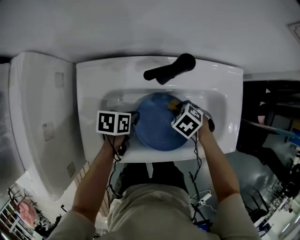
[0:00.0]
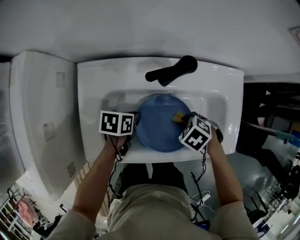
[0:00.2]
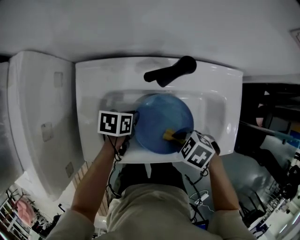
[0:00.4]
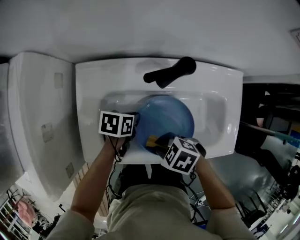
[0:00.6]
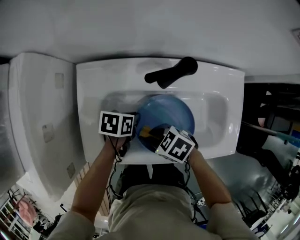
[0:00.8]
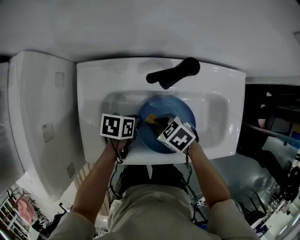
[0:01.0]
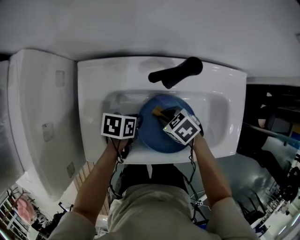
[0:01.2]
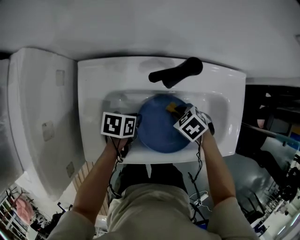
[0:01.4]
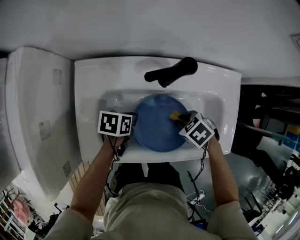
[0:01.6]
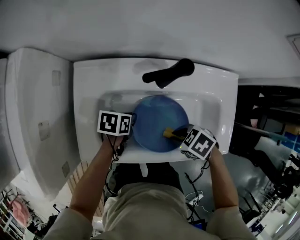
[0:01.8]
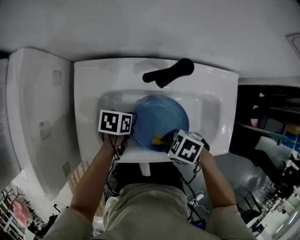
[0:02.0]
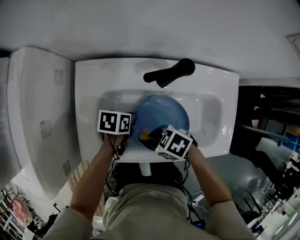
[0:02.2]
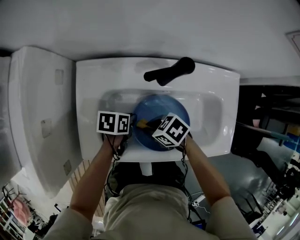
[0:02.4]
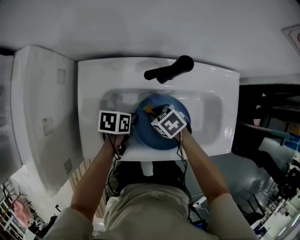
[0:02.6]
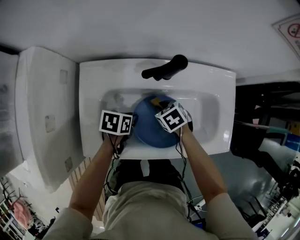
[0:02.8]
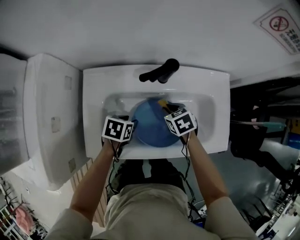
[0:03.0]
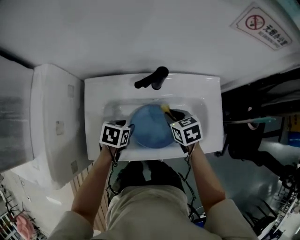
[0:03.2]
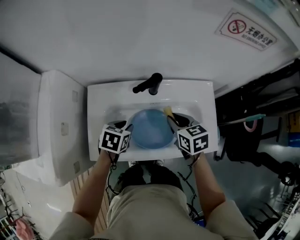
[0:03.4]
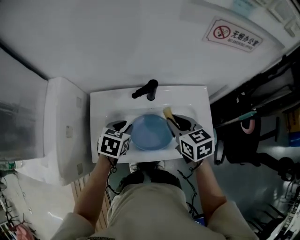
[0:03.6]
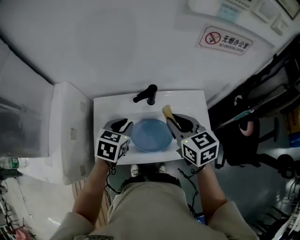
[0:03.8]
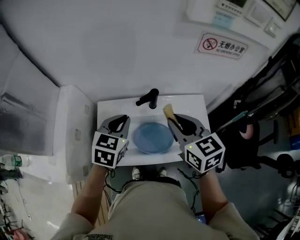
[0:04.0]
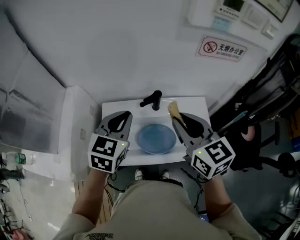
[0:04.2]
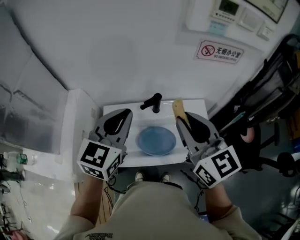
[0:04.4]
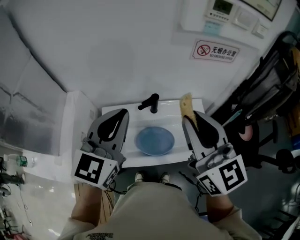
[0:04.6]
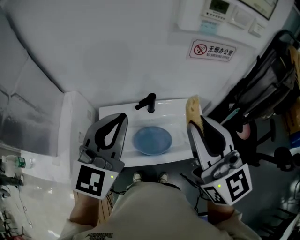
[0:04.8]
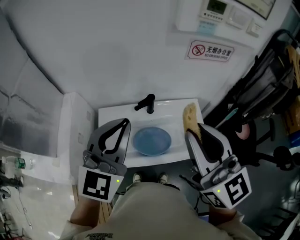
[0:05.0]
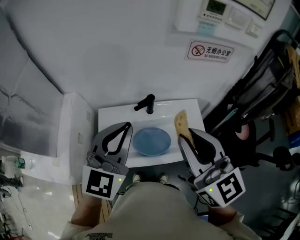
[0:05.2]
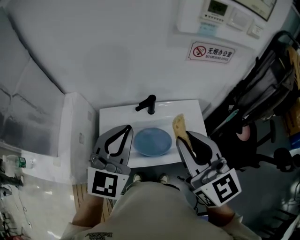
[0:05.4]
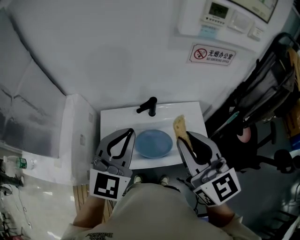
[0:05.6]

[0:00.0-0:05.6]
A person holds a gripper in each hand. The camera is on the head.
0:00.0 to 0:01.4: The right gripper travels upward and back again, approximately 10 cm each way.
0:01.4 to 0:02.8: The right gripper reaches approximately 10 cm upward, then returns.
0:02.8 to 0:04.2: Both grippers travel together upward, approximately 50 cm. The right gripper tilts its fingers some 50 degrees upward. Meanwhile the left gripper tips its fingers upward by about 30 degrees, and opens, then closes once more.
0:04.2 to 0:05.6: The right gripper goes about 10 cm backward and upward. Meanwhile the left gripper travels upward and backward by approximately 10 cm, and turns by some 20 degrees.

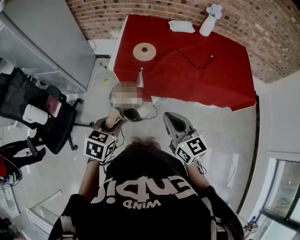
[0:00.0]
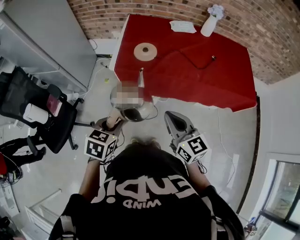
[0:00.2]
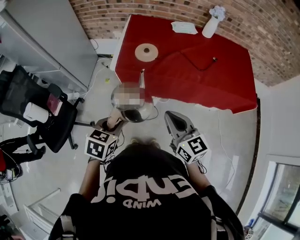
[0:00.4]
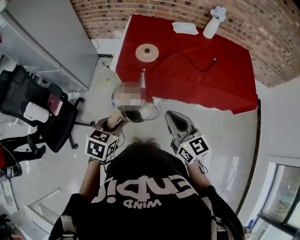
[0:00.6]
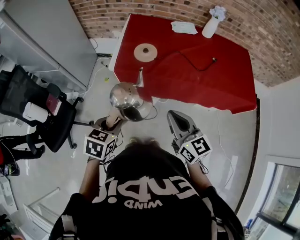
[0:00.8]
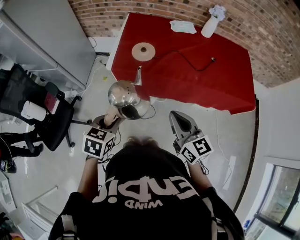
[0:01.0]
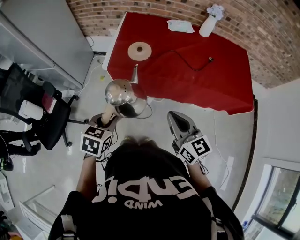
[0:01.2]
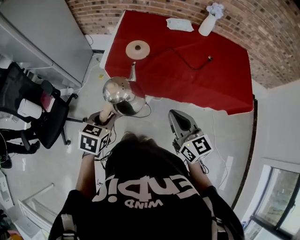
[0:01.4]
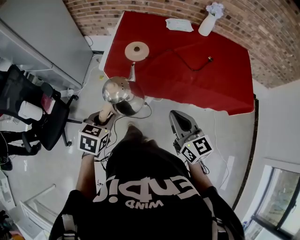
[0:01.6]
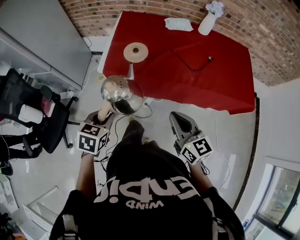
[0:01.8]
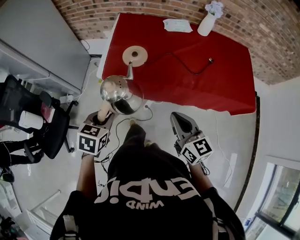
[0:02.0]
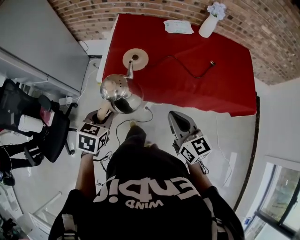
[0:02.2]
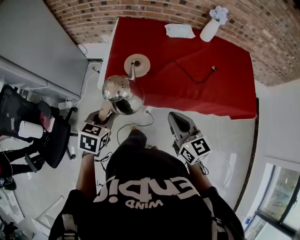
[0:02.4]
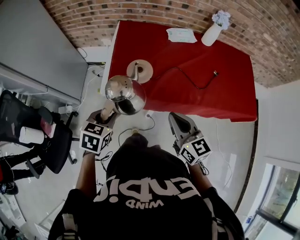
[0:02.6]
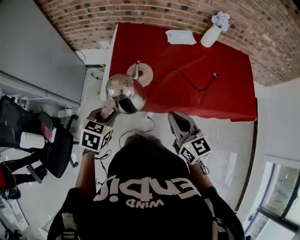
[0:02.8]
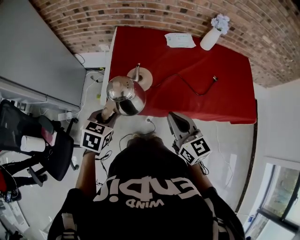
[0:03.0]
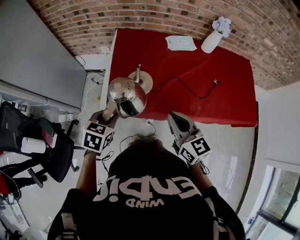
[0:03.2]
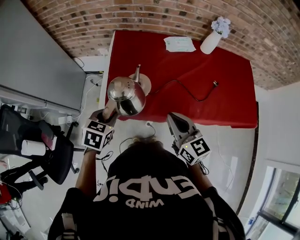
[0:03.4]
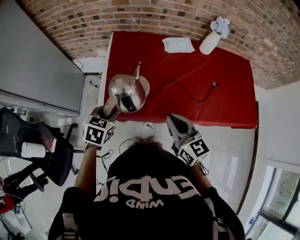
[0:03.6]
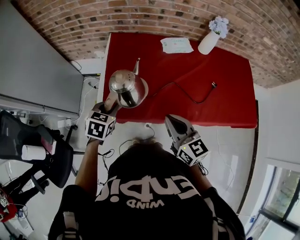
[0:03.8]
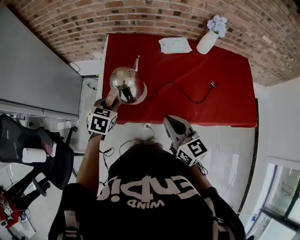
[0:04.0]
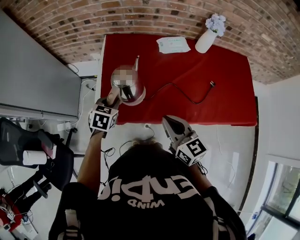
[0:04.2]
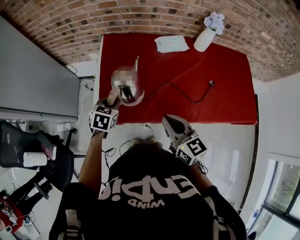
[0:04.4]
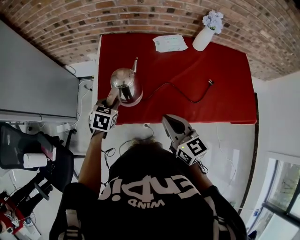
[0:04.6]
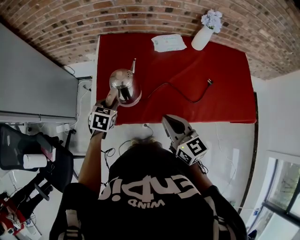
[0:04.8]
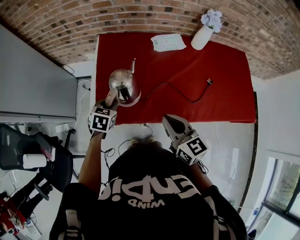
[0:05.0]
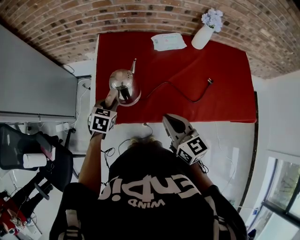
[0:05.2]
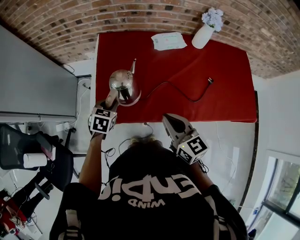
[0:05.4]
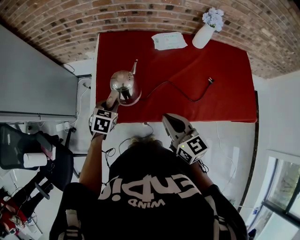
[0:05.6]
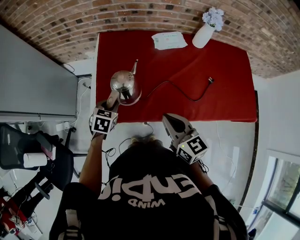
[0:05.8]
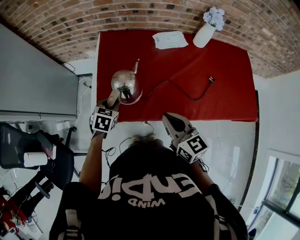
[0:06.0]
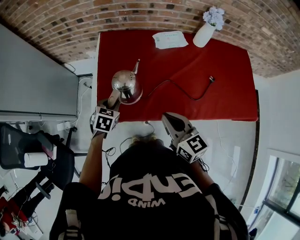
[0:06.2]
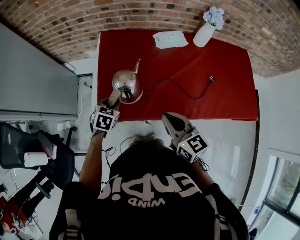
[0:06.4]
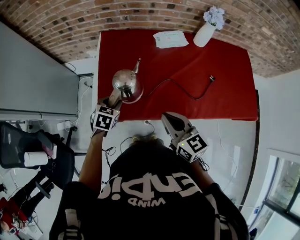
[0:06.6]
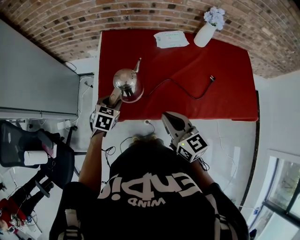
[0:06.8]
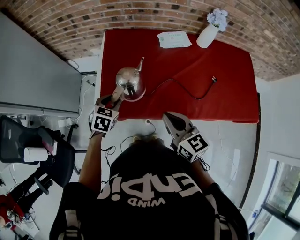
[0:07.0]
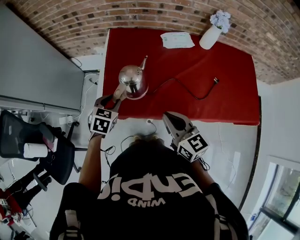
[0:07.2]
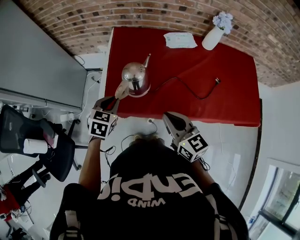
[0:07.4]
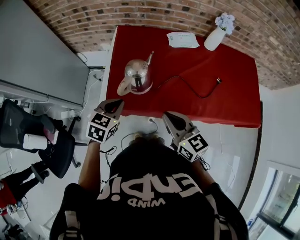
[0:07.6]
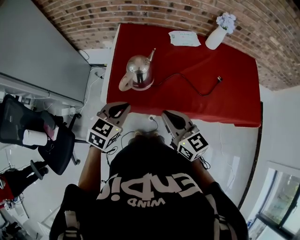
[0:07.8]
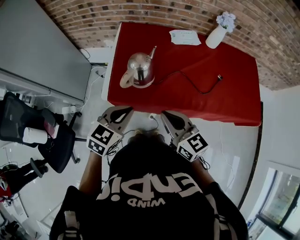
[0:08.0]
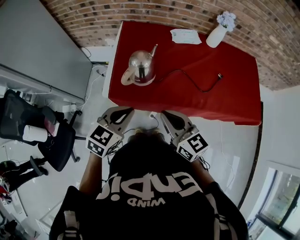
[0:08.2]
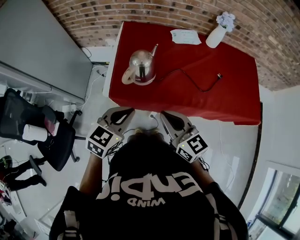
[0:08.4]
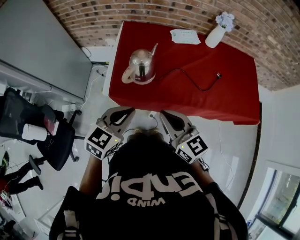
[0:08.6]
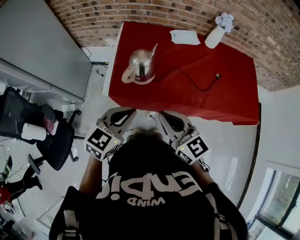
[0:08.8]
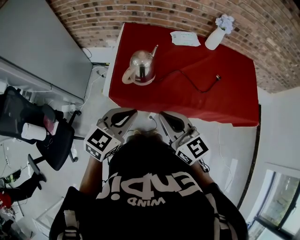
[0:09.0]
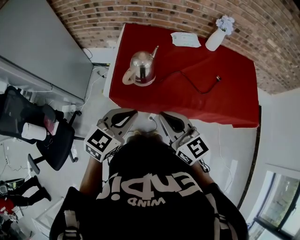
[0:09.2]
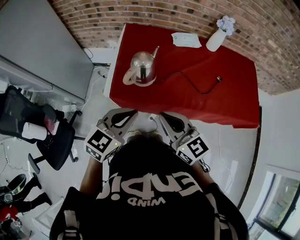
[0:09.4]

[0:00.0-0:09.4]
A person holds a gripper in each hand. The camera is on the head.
0:00.0 to 0:01.6: The right gripper goes about 10 cm to the right, while the left gripper goes roughly 5 cm forward.
0:01.6 to 0:03.2: Both grippers move forward, about 25 cm.
0:03.2 to 0:04.8: The left gripper goes about 15 cm forward and downward. Meanwhile the right gripper moves forward, roughly 5 cm.
0:04.8 to 0:06.2: There are only small adjustments of the grippers.
0:06.2 to 0:07.8: The right gripper shifts roughly 5 cm backward; the left gripper goes some 20 cm backward and upward, and turns by roughly 20 degrees.
0:07.8 to 0:09.4: The right gripper goes some 5 cm backward. Meanwhile the left gripper is displaced upward and backward by roughly 10 cm.

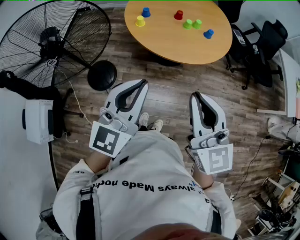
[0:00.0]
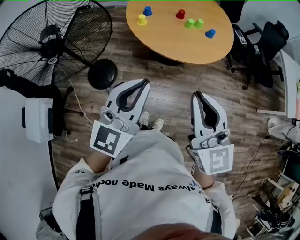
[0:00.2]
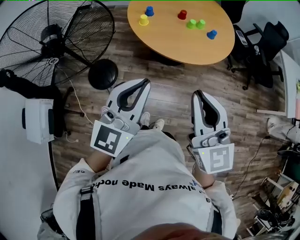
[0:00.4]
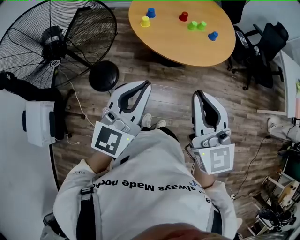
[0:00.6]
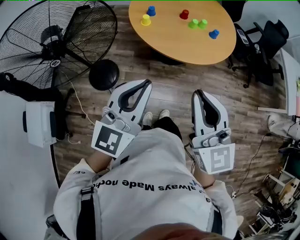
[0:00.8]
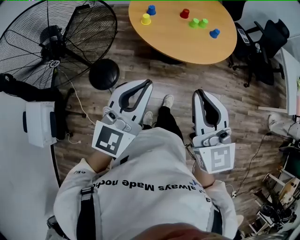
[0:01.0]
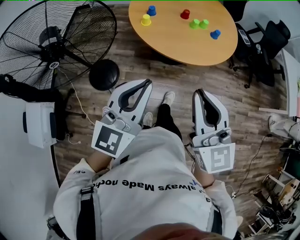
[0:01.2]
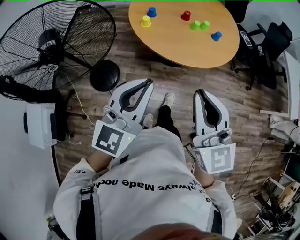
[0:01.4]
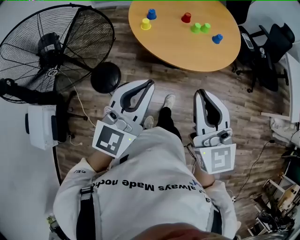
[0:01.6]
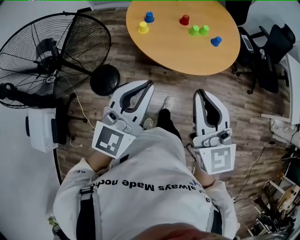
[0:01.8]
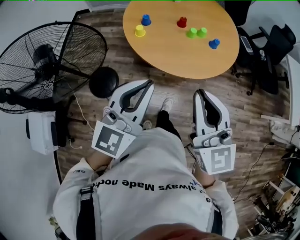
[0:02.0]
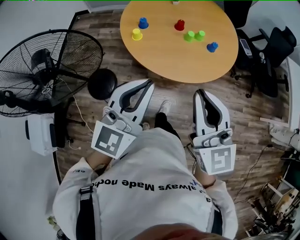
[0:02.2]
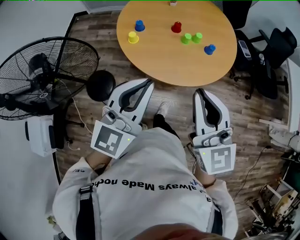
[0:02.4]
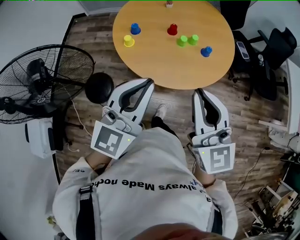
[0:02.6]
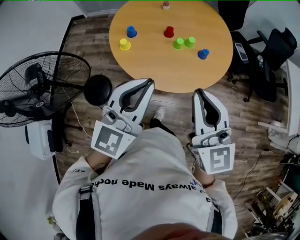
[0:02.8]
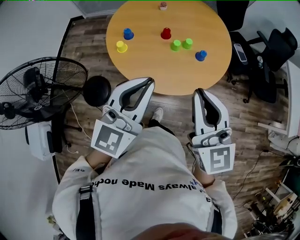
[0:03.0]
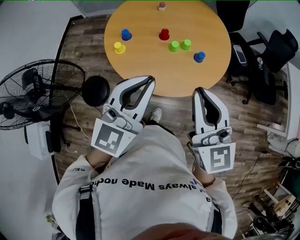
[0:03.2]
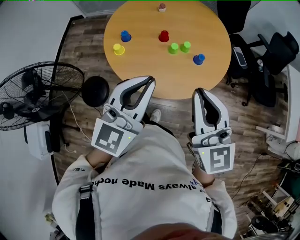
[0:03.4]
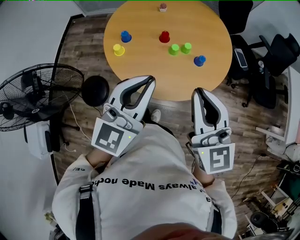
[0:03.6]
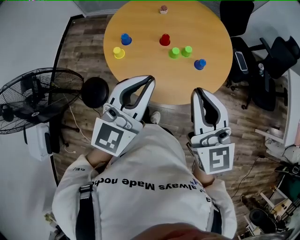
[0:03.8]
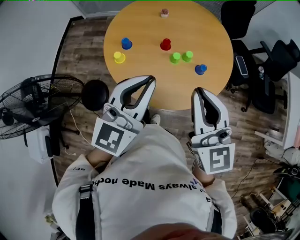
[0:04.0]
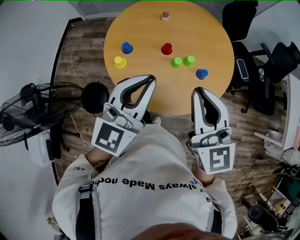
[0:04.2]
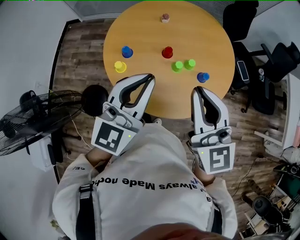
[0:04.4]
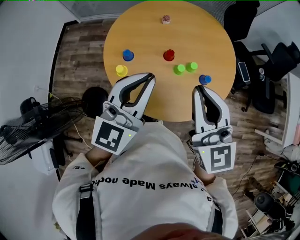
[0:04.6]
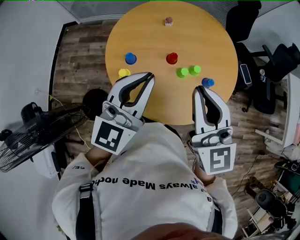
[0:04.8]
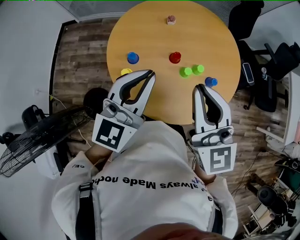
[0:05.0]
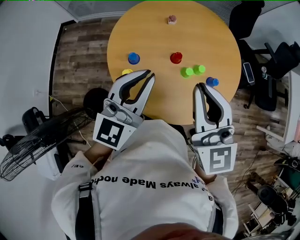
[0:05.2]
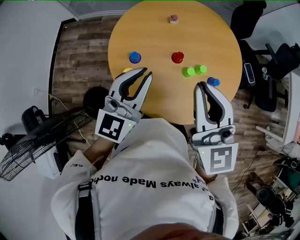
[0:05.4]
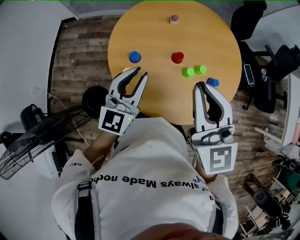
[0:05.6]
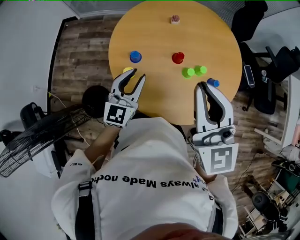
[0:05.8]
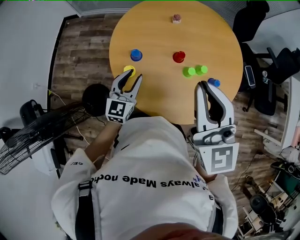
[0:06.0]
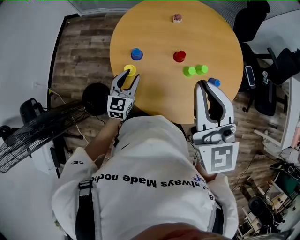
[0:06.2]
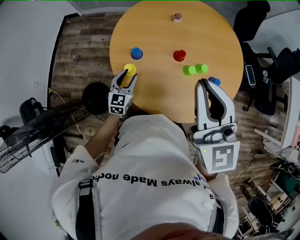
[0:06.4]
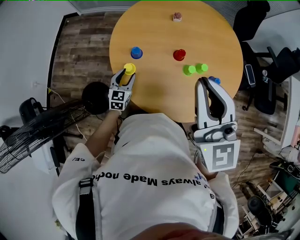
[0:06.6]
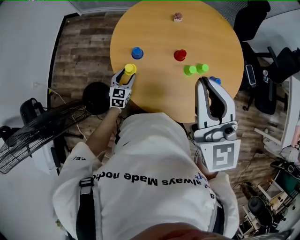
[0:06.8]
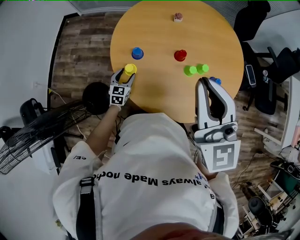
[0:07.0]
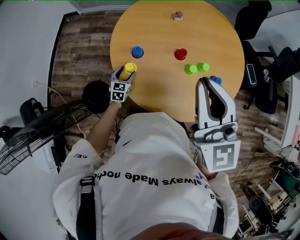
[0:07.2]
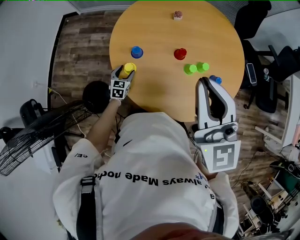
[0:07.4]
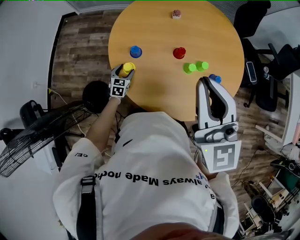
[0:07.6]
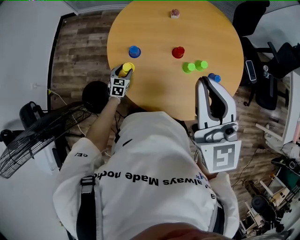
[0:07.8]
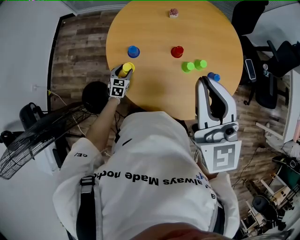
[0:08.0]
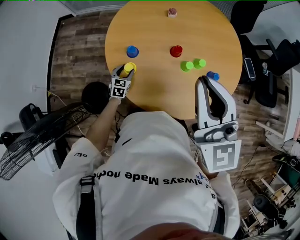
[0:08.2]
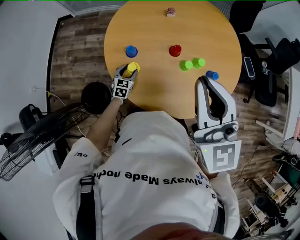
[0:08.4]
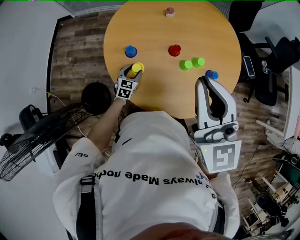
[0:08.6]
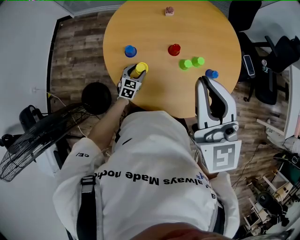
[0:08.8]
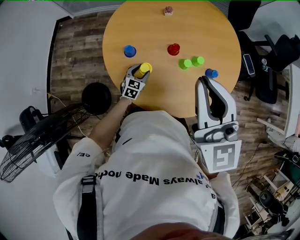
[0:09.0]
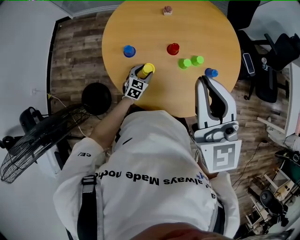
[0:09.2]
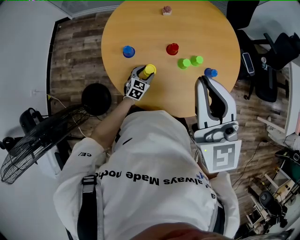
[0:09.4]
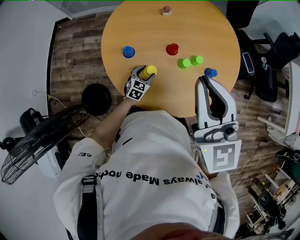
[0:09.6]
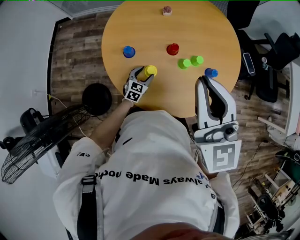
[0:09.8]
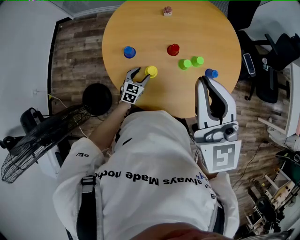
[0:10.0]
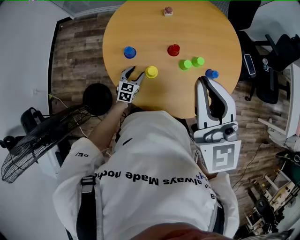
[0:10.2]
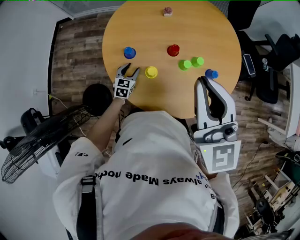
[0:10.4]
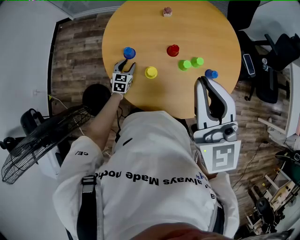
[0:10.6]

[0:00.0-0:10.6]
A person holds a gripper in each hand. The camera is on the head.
0:00.0 to 0:01.6: The grippers both shift forward by some 10 cm.
0:01.6 to 0:03.0: Both grippers travel together forward and to the right, approximately 25 cm.
0:03.0 to 0:04.6: The grippers both shift forward by roughly 20 cm.
0:04.6 to 0:06.0: The right gripper goes about 10 cm to the left; the left gripper is displaced downward and to the left by some 25 cm, and opens up.
0:06.0 to 0:07.6: The left gripper travels downward by about 25 cm, rotates approximately 30 degrees, and opens.
0:07.6 to 0:09.0: The left gripper travels to the right by about 10 cm.
0:09.0 to 0:10.6: The left gripper is displaced to the left by approximately 10 cm.
